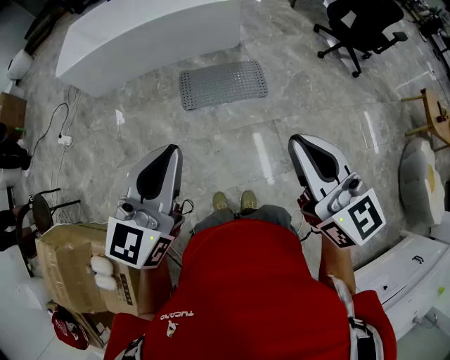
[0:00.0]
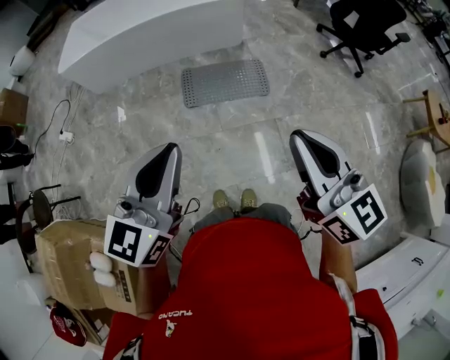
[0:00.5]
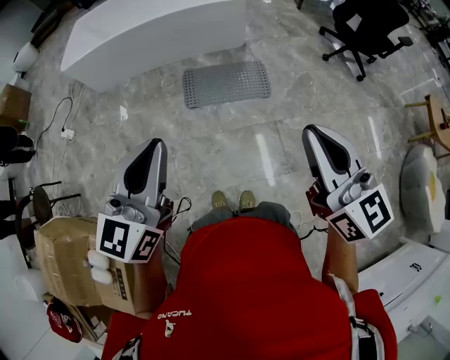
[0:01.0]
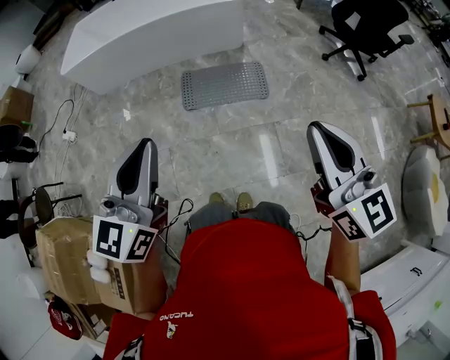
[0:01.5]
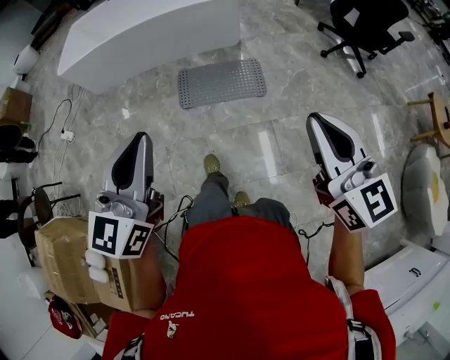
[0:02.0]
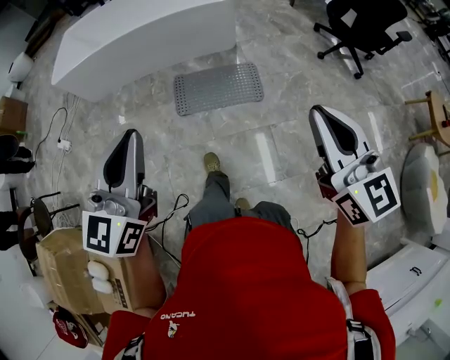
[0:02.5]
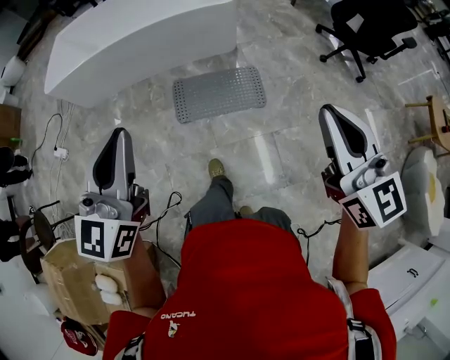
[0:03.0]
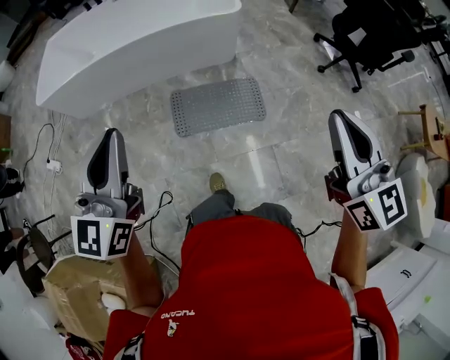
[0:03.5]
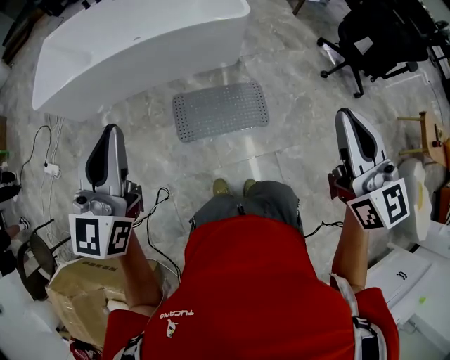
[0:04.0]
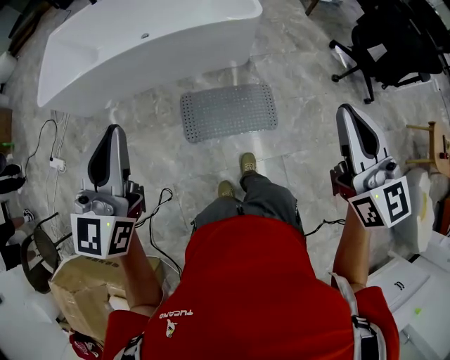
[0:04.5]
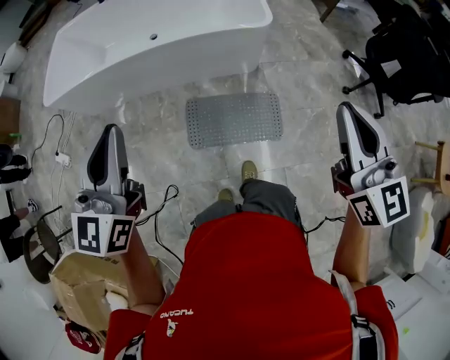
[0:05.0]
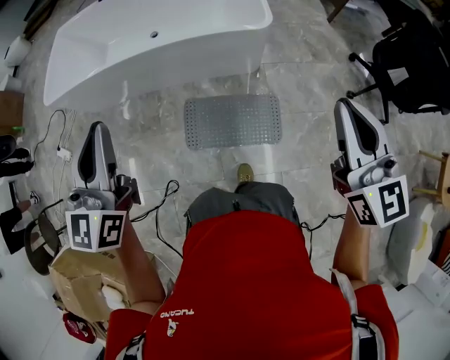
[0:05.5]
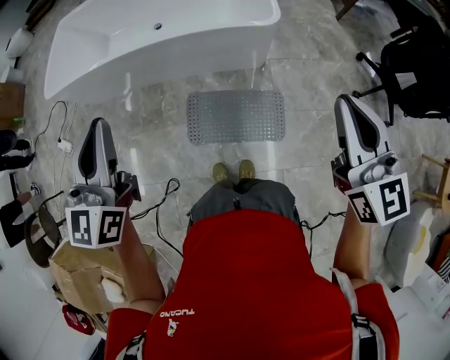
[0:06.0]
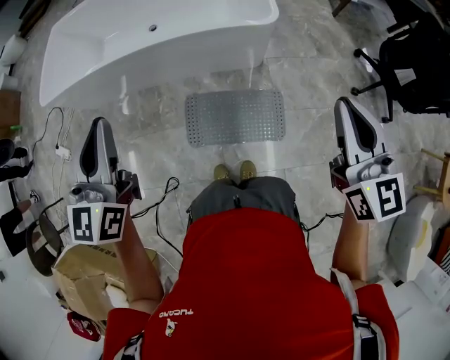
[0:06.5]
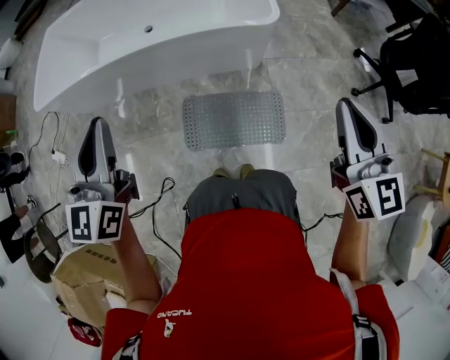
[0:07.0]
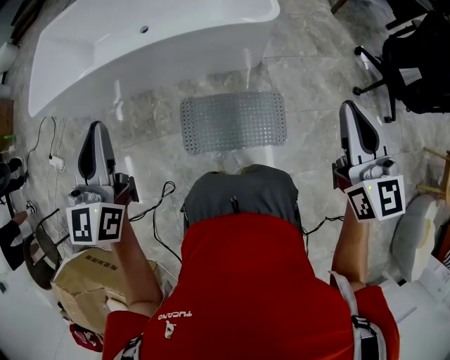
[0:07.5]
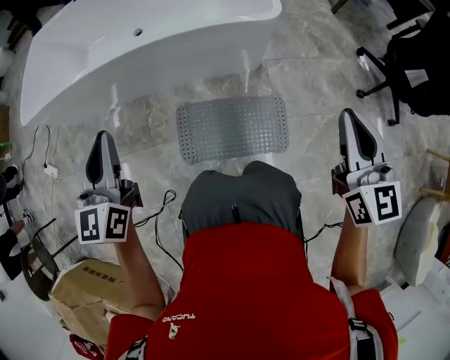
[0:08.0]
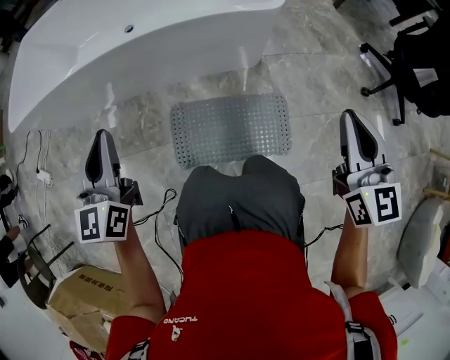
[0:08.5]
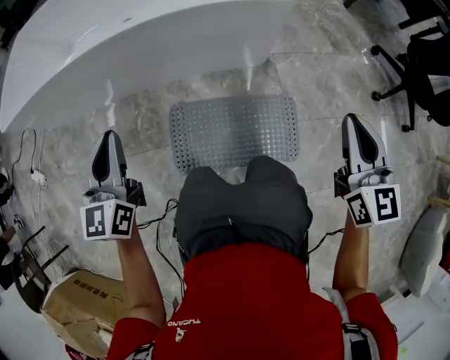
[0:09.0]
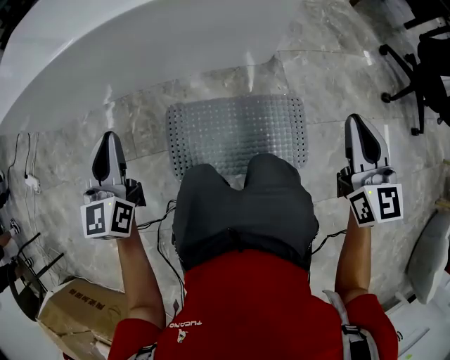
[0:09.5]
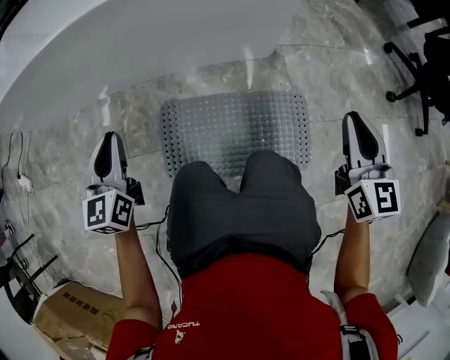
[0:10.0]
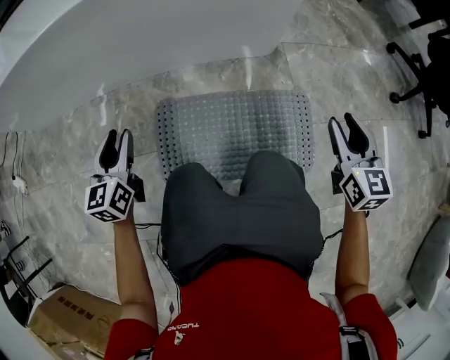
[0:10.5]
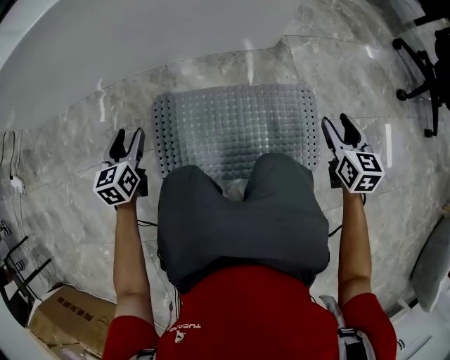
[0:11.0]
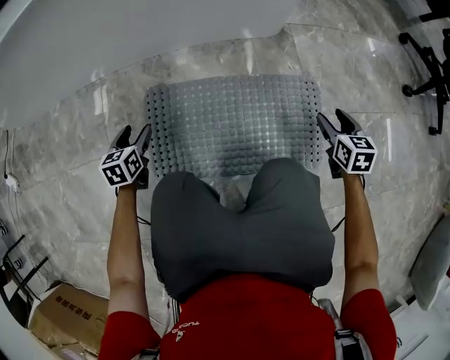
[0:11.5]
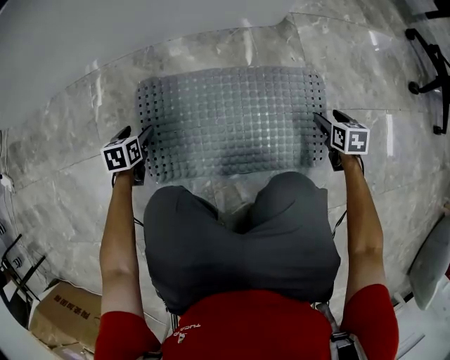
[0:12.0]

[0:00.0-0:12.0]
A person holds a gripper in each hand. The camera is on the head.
0:00.0 to 0:02.0: The right gripper moves to the right, roughly 10 cm.
0:02.0 to 0:04.0: The right gripper shifts approximately 30 cm forward; the left gripper heads forward and to the left, covering about 40 cm.
0:04.0 to 0:06.0: Both grippers travel together forward, approximately 20 cm.
0:06.0 to 0:08.0: The two grippers go approximately 20 cm downward.
0:08.0 to 0:10.0: The grippers both shift downward by about 35 cm.
0:10.0 to 0:12.0: Both grippers travel together downward, about 40 cm. The right gripper points its fingers approximately 50 degrees further downward, and opens up; the left gripper points its fingers approximately 50 degrees further downward, and opens.

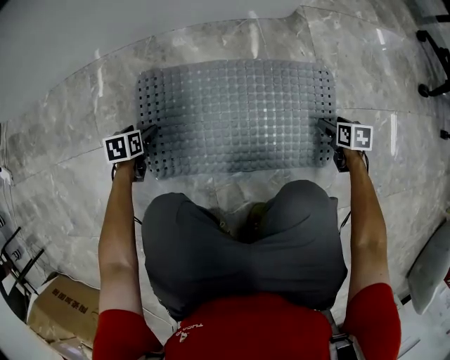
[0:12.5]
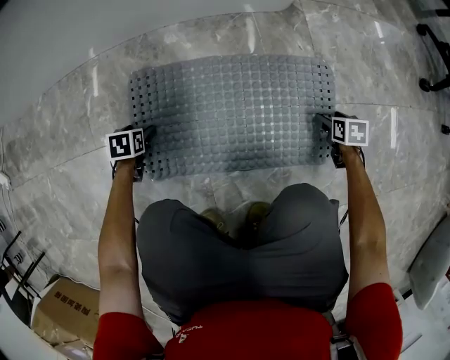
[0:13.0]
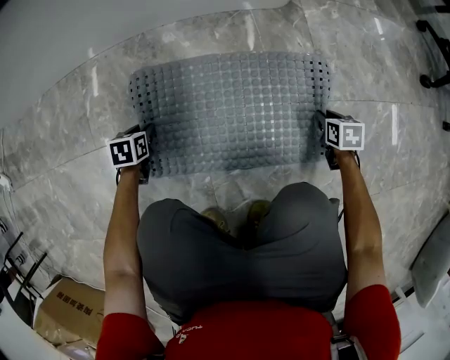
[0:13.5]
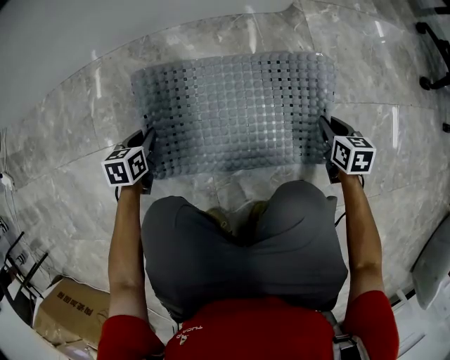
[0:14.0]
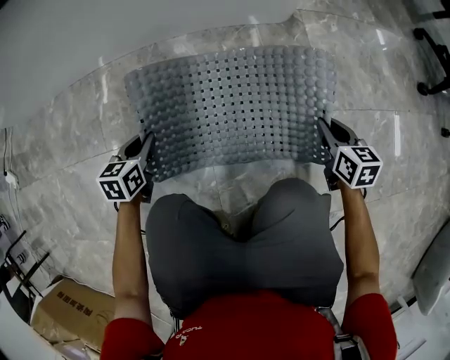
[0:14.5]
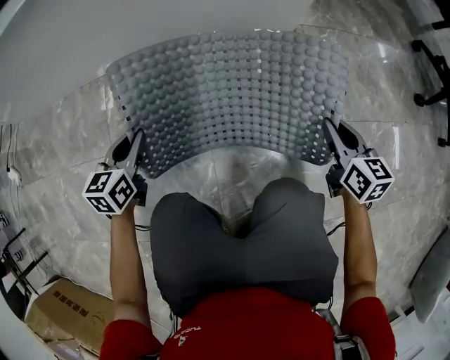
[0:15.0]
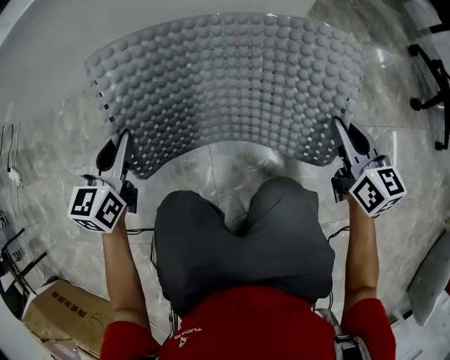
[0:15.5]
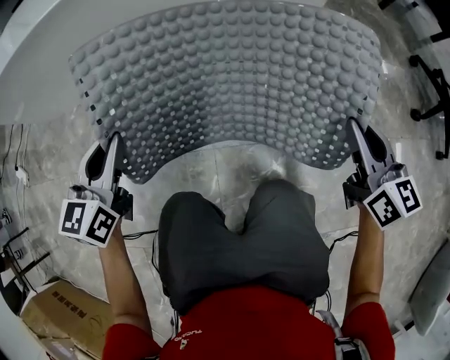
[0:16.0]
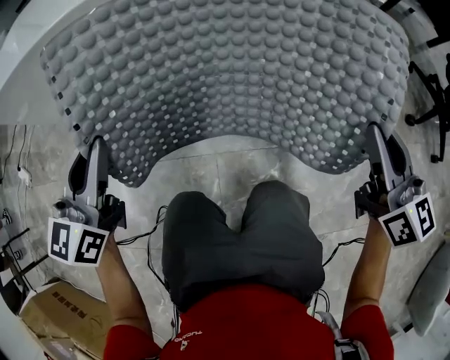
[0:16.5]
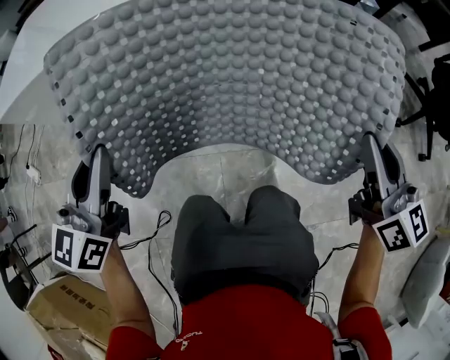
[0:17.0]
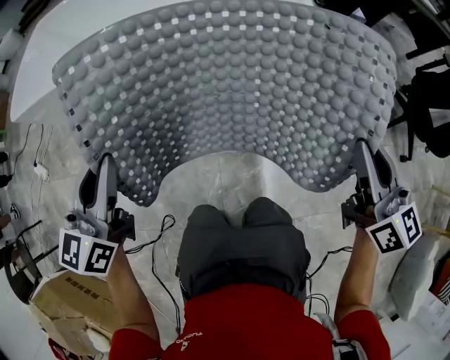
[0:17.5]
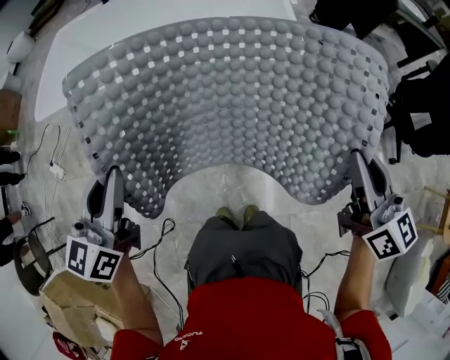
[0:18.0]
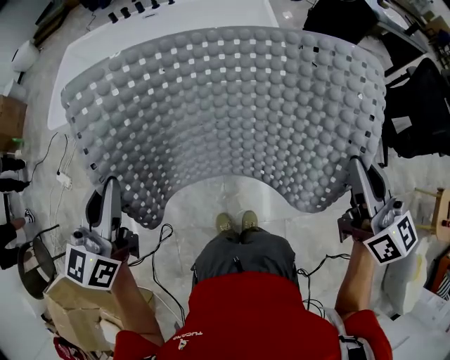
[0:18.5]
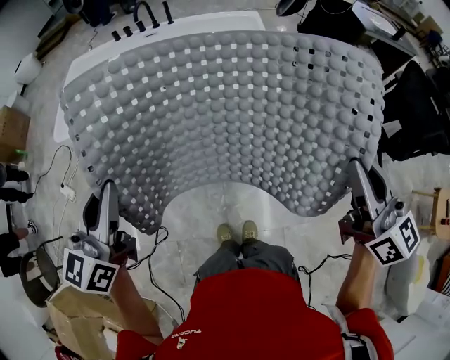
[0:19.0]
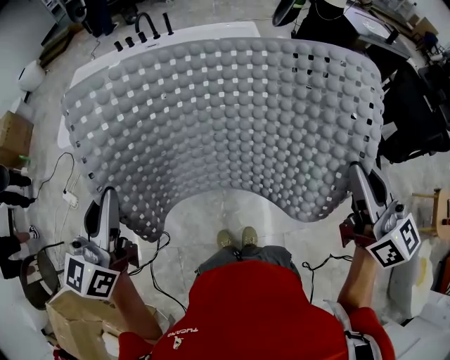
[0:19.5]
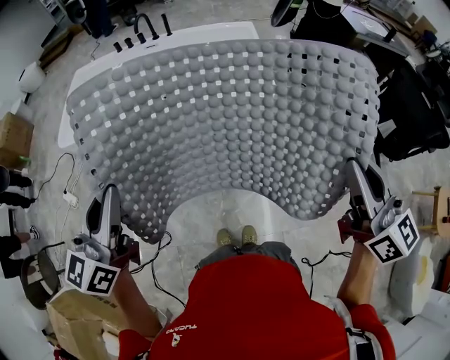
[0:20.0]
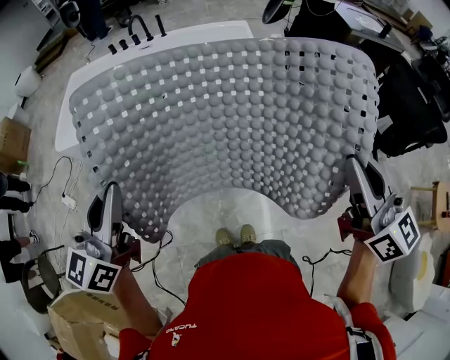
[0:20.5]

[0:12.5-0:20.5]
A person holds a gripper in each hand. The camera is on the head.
0:12.5 to 0:14.5: Both grippers travel together upward, roughly 15 cm. The right gripper swivels approximately 30 degrees, and closes up; the left gripper rotates about 20 degrees, and closes.
0:14.5 to 0:16.5: The two grippers go some 25 cm upward. The left gripper points its fingers about 30 degrees further upward, while the right gripper tilts its fingers some 30 degrees upward.
0:16.5 to 0:20.5: There are only small adjustments of the grippers.

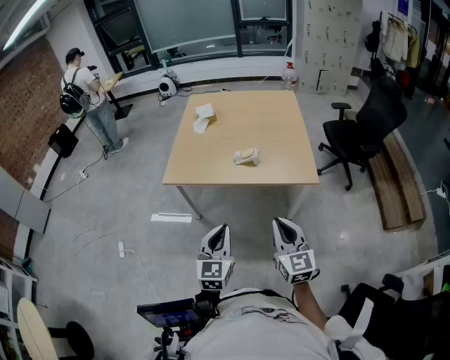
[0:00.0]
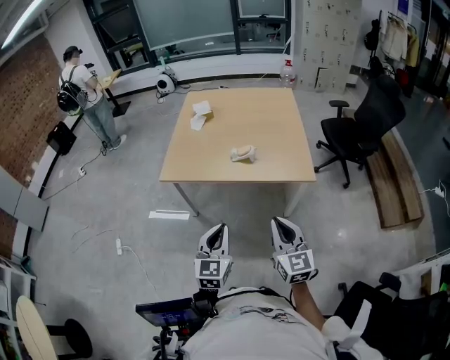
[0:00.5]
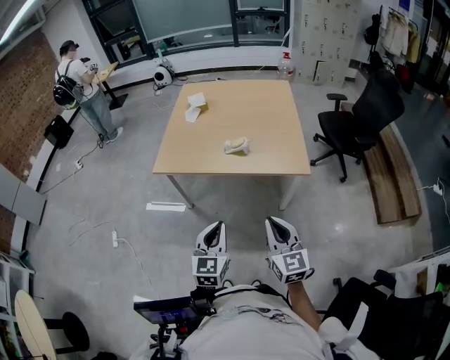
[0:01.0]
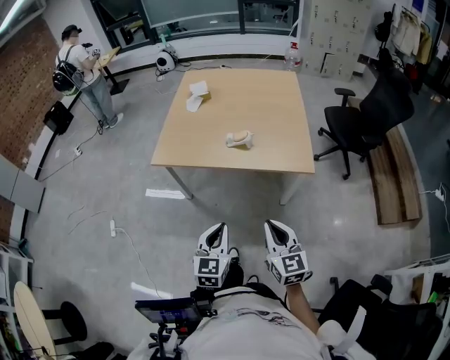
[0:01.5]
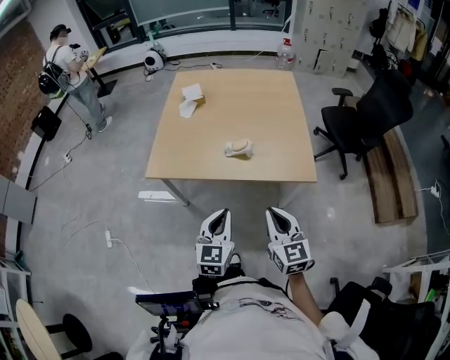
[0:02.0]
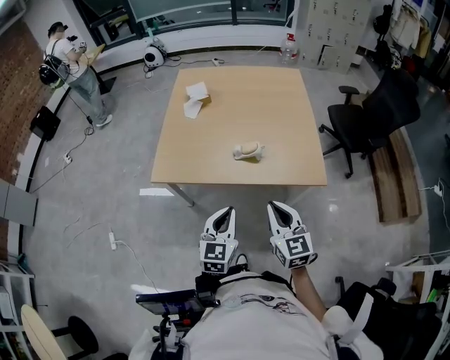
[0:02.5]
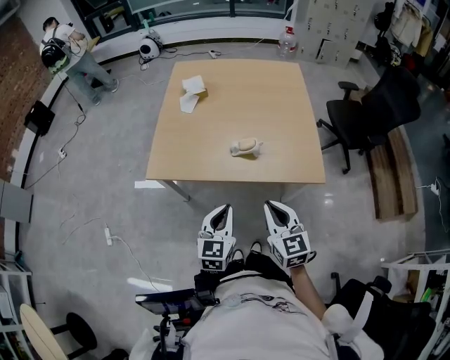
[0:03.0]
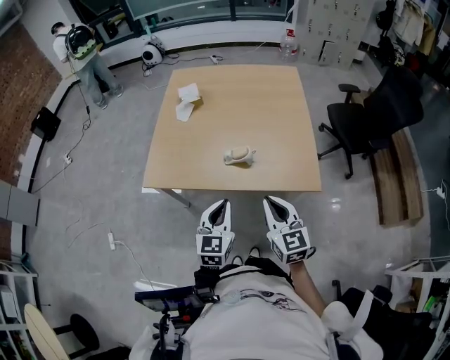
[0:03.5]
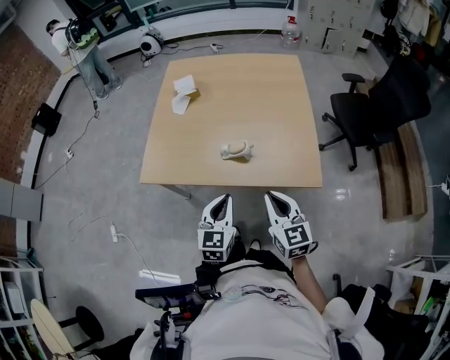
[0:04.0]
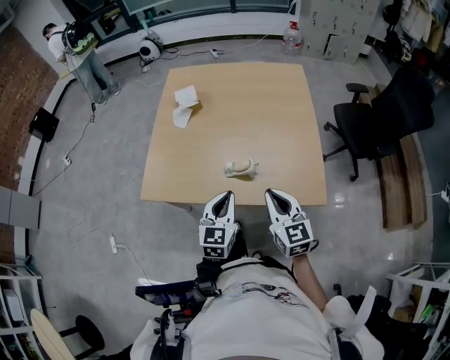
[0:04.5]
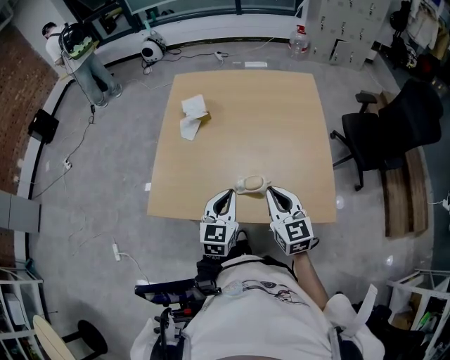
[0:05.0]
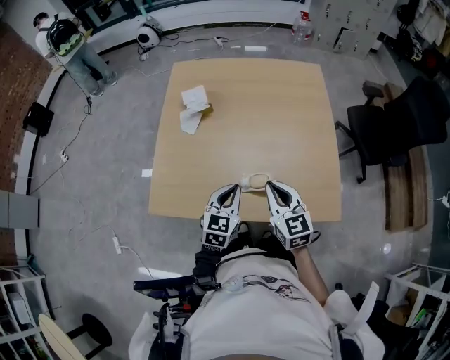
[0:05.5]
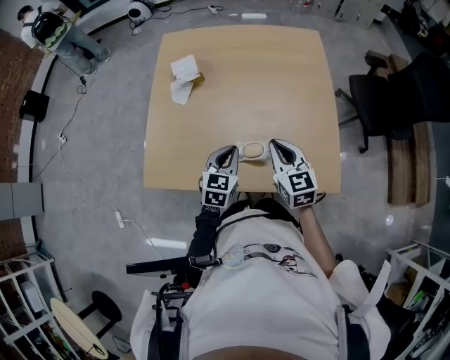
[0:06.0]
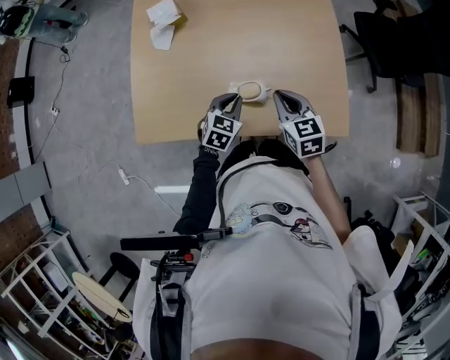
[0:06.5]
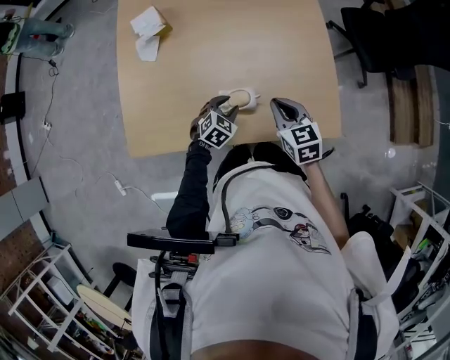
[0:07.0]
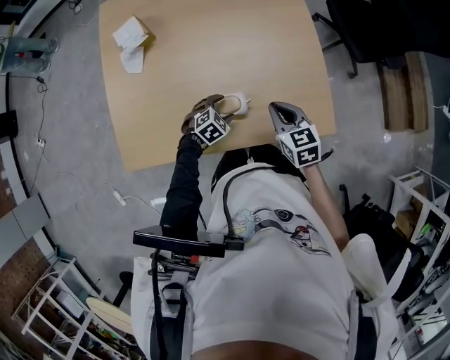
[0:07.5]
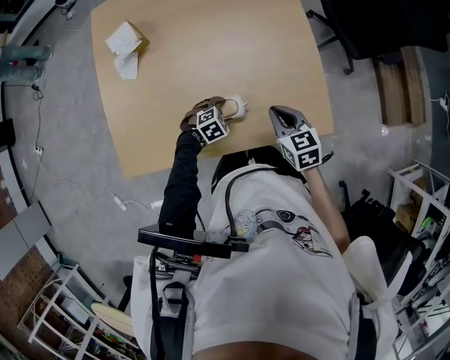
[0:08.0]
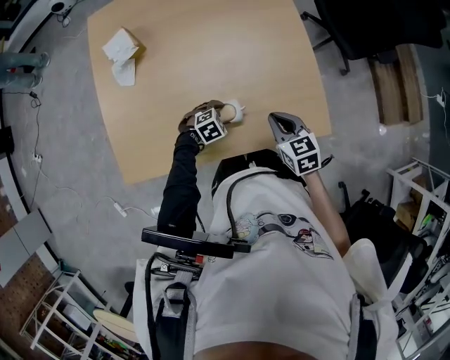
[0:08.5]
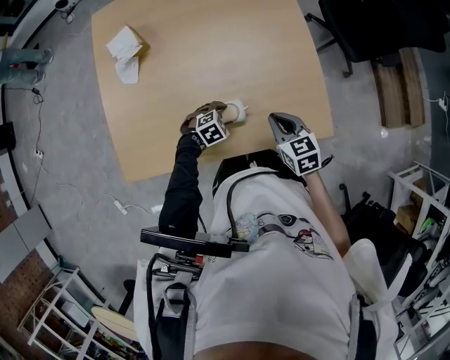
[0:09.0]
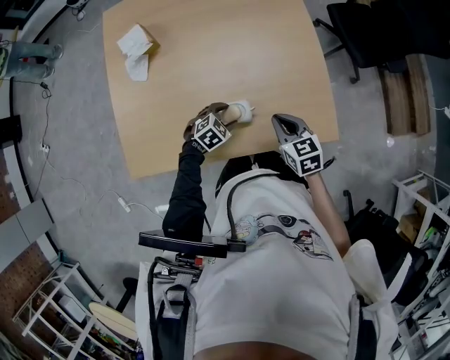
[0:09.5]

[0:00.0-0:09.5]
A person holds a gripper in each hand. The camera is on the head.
0:00.0 to 0:02.0: The two grippers go approximately 10 cm forward.
0:02.0 to 0:04.0: Both grippers travel together forward, approximately 15 cm.
0:04.0 to 0:05.5: Both grippers travel together forward, roughly 25 cm.
0:05.5 to 0:07.5: The right gripper goes approximately 15 cm downward and to the right, and changes its angle by roughly 20 degrees; the left gripper goes roughly 25 cm downward, points its fingers approximately 30 degrees further downward, and opens.
0:07.5 to 0:09.5: There are only small adjustments of the grippers.
